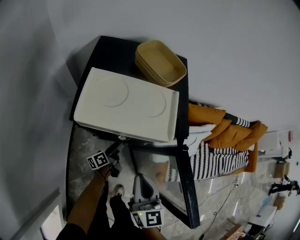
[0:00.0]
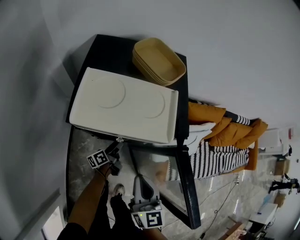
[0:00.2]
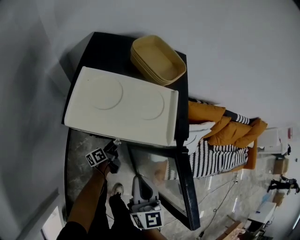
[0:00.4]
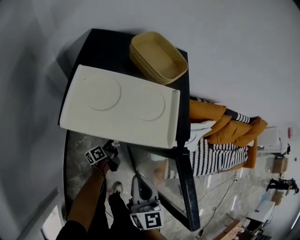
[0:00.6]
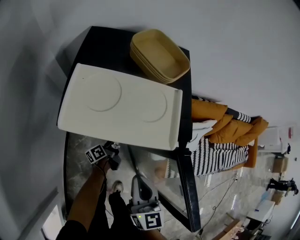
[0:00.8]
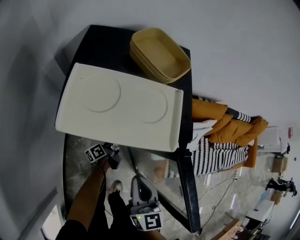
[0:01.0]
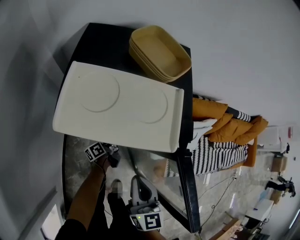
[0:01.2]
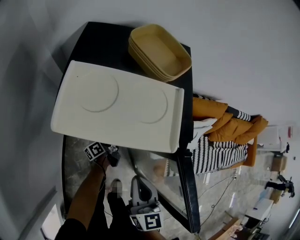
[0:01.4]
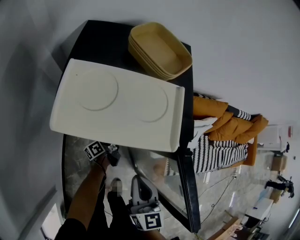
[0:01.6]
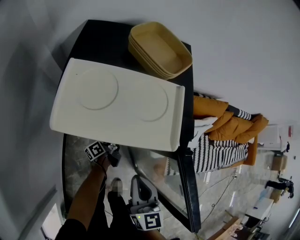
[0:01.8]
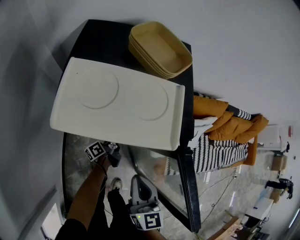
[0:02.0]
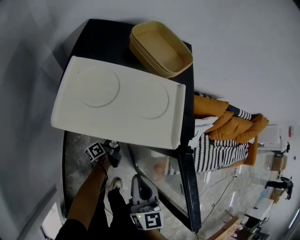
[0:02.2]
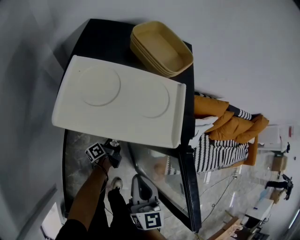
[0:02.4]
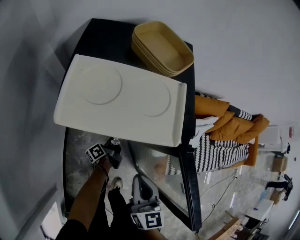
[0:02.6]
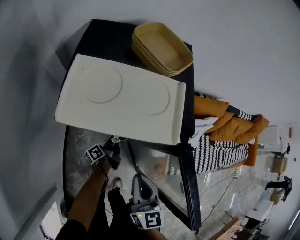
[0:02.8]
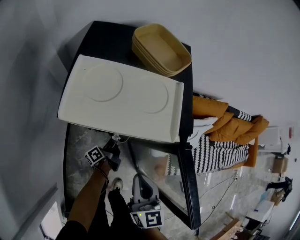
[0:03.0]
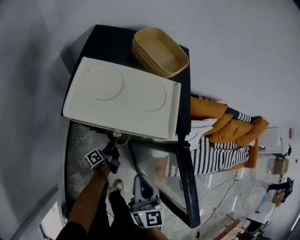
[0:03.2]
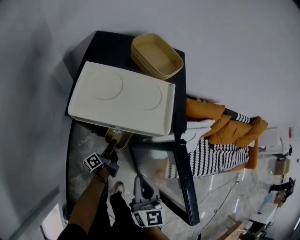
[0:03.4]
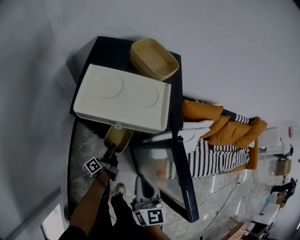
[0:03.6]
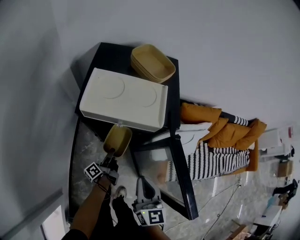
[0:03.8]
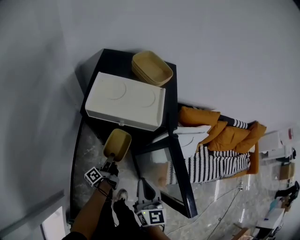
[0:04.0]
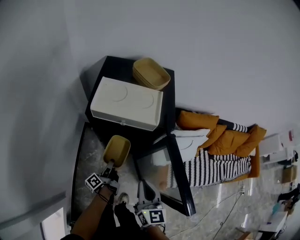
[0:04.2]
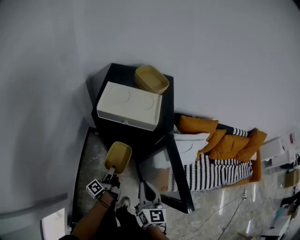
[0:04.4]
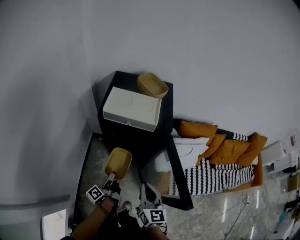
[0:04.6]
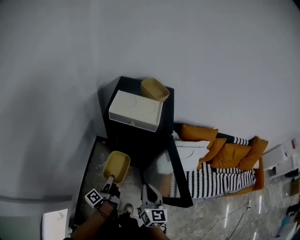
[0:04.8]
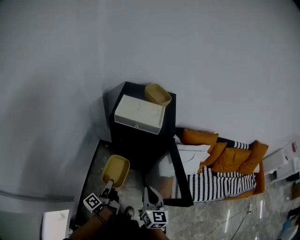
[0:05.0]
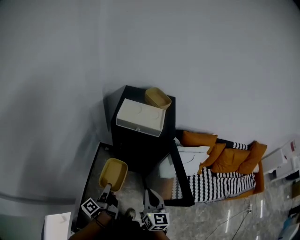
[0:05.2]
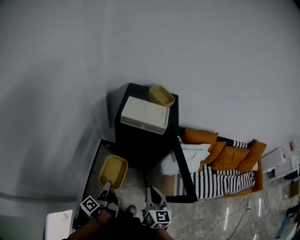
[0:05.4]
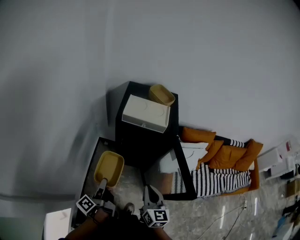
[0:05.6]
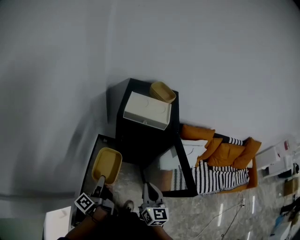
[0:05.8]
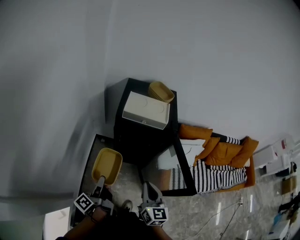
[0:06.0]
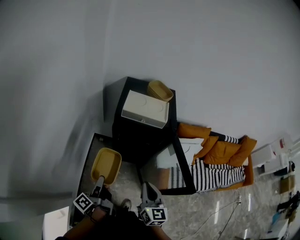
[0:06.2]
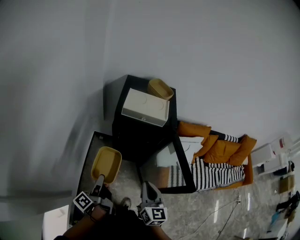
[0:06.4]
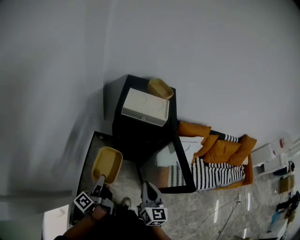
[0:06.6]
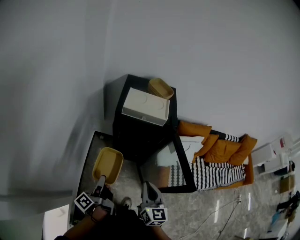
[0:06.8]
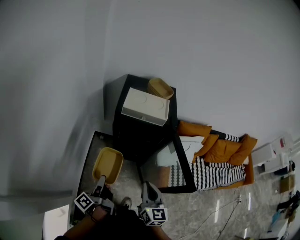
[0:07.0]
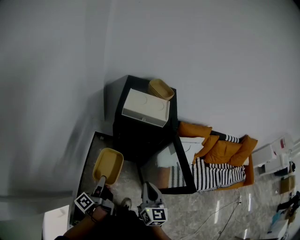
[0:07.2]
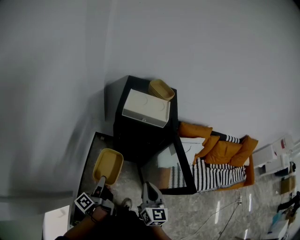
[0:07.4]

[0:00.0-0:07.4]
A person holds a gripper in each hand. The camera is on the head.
0:00.0 to 0:01.4: The left gripper goes about 5 cm forward.
0:01.4 to 0:03.0: The grippers stay close to where they were, moving slightly.
0:03.0 to 0:04.4: The right gripper moves backward and upward, approximately 10 cm. The left gripper shifts roughly 25 cm backward and upward.
0:04.4 to 0:06.0: The left gripper shifts about 25 cm upward, backward and to the left. The right gripper goes about 15 cm backward, upward and to the left.
0:06.0 to 0:07.4: The grippers stay close to where they were, moving slightly.

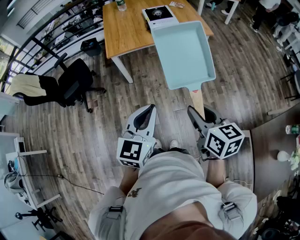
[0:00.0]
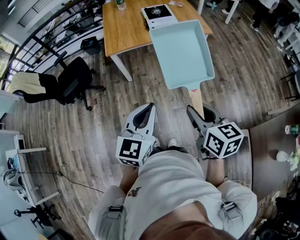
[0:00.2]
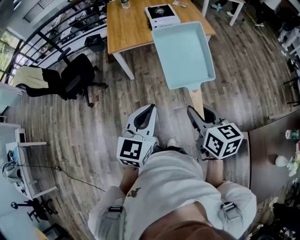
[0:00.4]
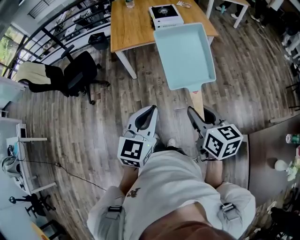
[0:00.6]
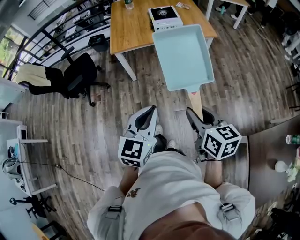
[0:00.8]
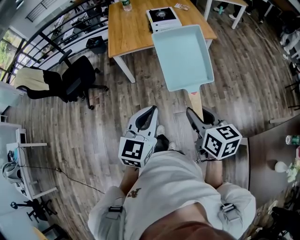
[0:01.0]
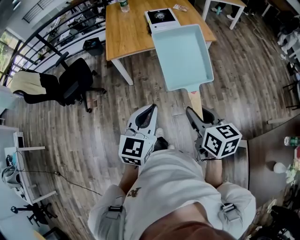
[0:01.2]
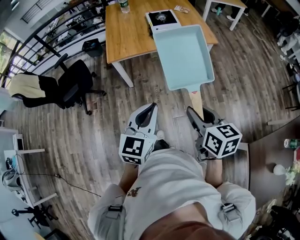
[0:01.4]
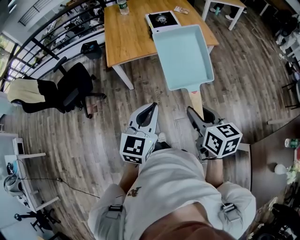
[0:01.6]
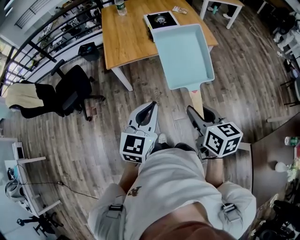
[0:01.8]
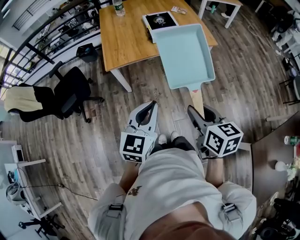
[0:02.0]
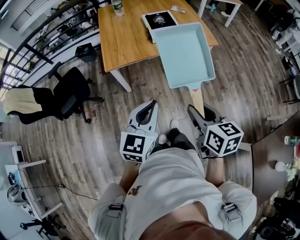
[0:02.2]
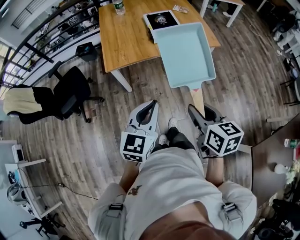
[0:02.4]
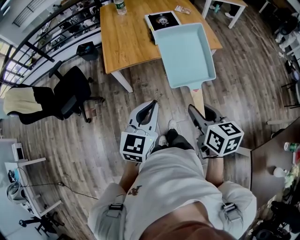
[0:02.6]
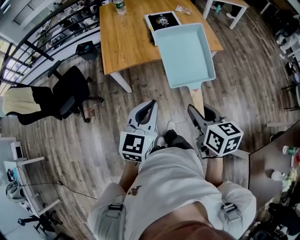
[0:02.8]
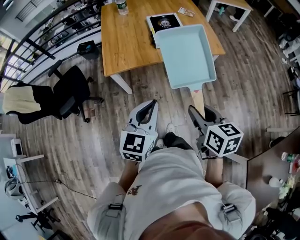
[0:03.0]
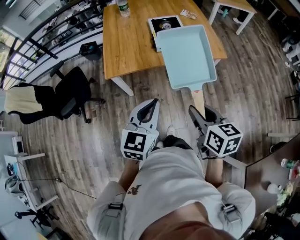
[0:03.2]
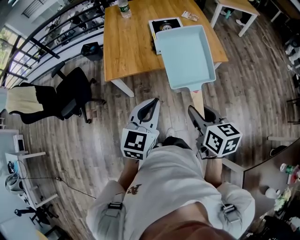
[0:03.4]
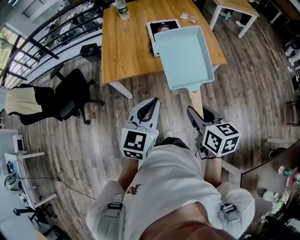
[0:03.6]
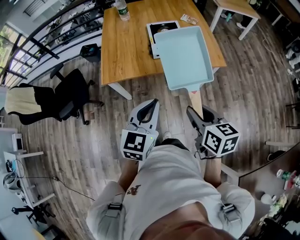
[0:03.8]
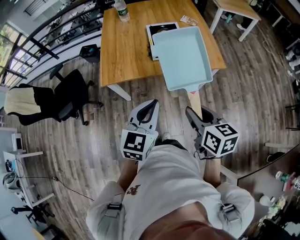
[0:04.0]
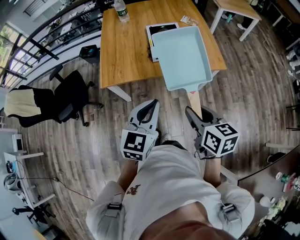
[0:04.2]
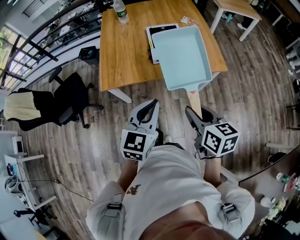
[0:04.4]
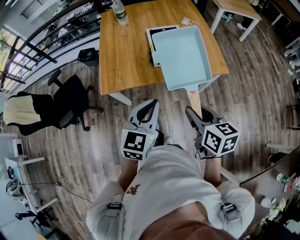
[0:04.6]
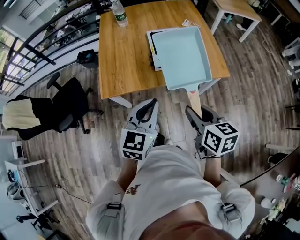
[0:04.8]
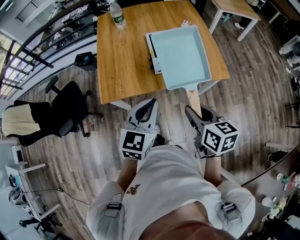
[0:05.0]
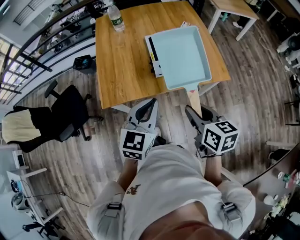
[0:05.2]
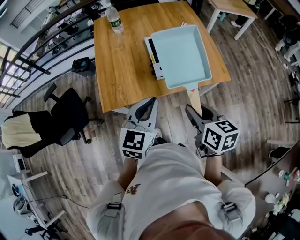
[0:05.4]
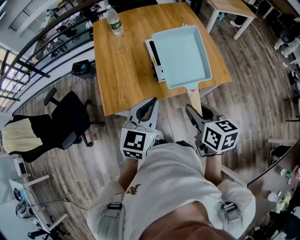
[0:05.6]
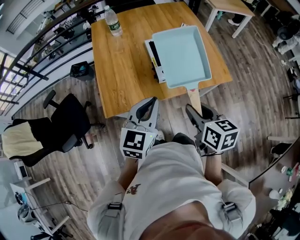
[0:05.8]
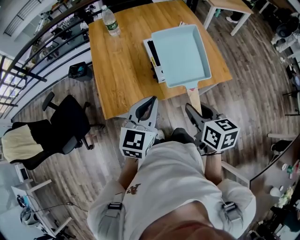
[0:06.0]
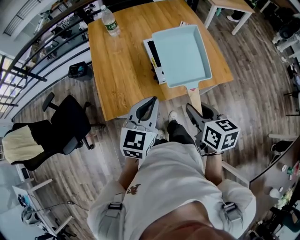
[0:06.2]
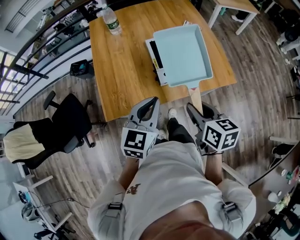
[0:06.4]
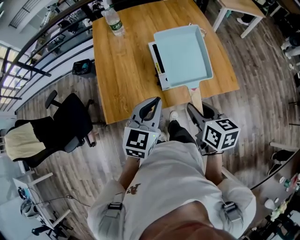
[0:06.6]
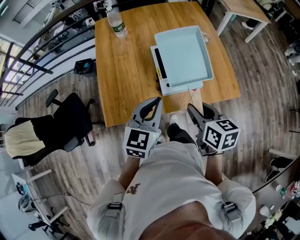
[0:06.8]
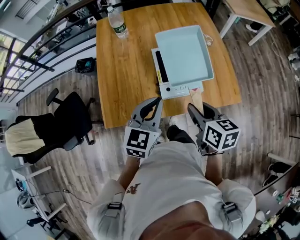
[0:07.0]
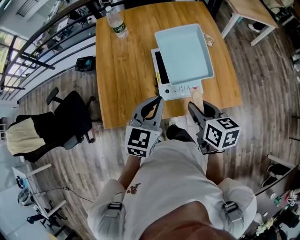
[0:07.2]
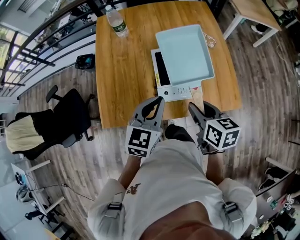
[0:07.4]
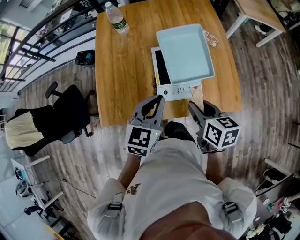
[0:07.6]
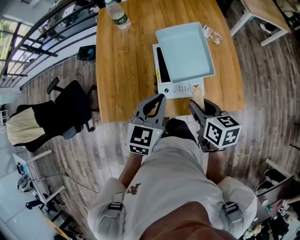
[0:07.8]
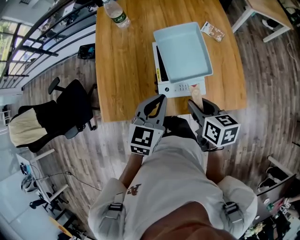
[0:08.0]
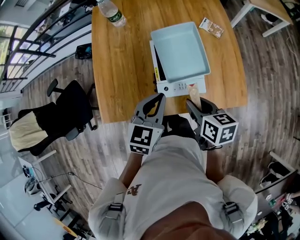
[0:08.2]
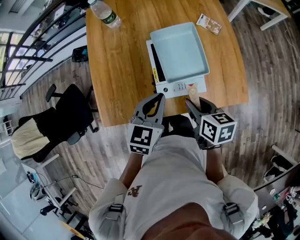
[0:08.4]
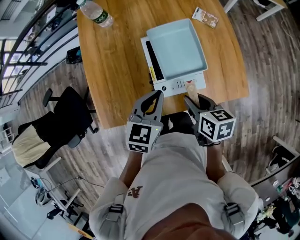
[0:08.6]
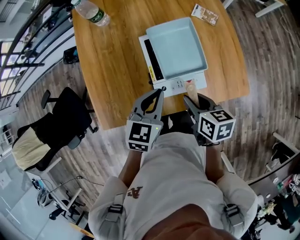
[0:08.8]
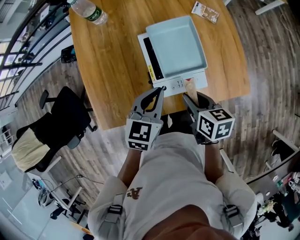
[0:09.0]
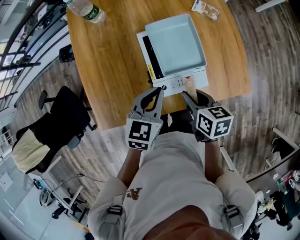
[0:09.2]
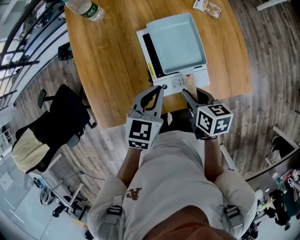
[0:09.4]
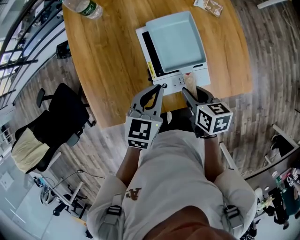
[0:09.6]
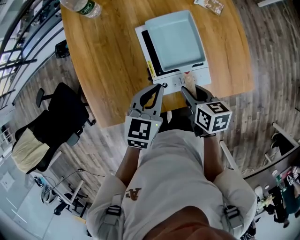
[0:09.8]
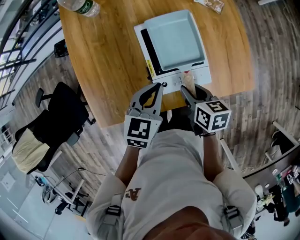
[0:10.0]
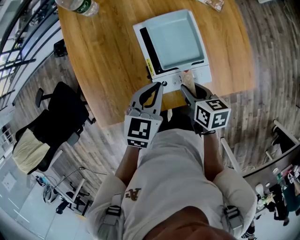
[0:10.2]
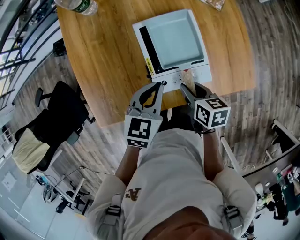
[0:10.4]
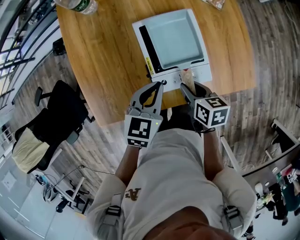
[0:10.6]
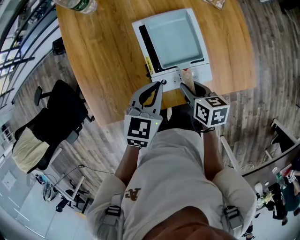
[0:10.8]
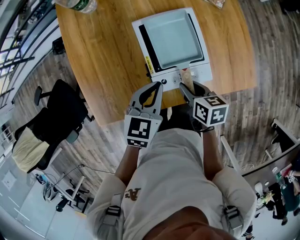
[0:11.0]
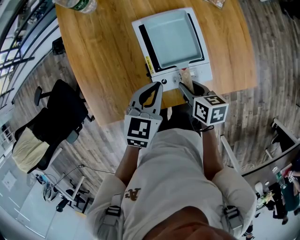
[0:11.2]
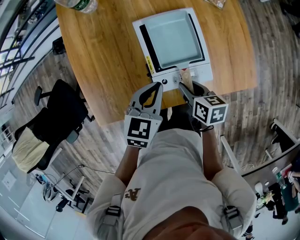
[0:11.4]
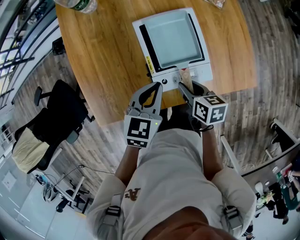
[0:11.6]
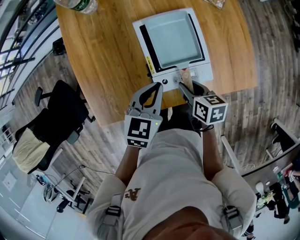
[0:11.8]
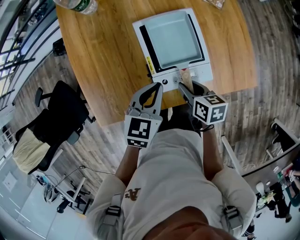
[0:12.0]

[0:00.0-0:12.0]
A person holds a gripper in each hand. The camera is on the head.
0:00.0 to 0:01.6: The two grippers go some 10 cm forward.
0:01.6 to 0:03.0: Both grippers travel together forward, about 15 cm.
0:03.0 to 0:04.4: The left gripper moves forward and to the right, some 15 cm; the right gripper shifts some 15 cm forward.
0:04.4 to 0:06.0: Both grippers travel together forward and to the left, about 20 cm.
0:06.0 to 0:07.6: The left gripper travels forward and to the right by some 20 cm, while the right gripper is displaced forward by about 20 cm.
0:07.6 to 0:09.0: The right gripper moves downward, about 10 cm. The left gripper is displaced downward and forward by roughly 10 cm.
0:09.0 to 0:10.4: The right gripper moves downward, some 10 cm.
0:10.4 to 0:12.0: The grippers move only a little.

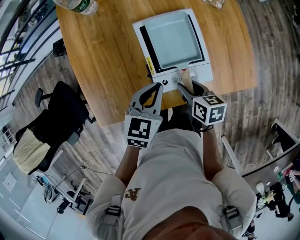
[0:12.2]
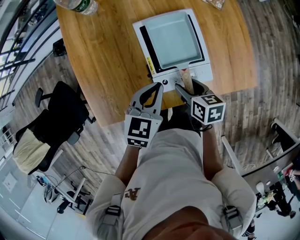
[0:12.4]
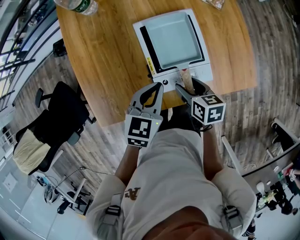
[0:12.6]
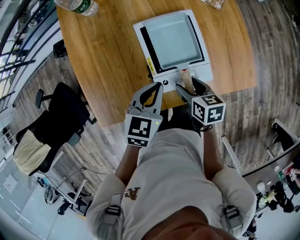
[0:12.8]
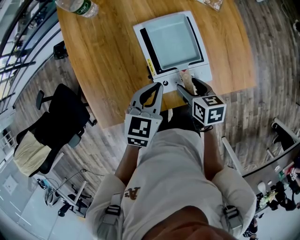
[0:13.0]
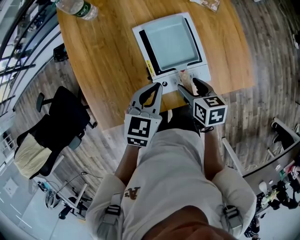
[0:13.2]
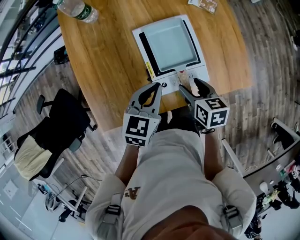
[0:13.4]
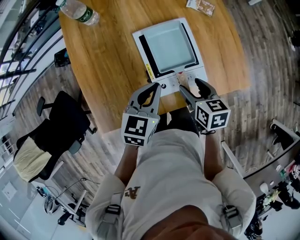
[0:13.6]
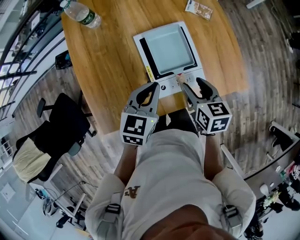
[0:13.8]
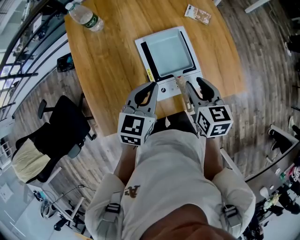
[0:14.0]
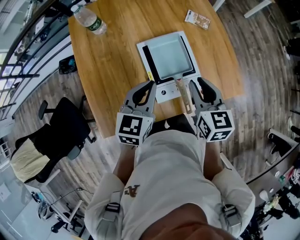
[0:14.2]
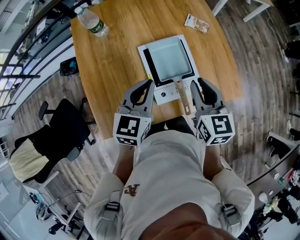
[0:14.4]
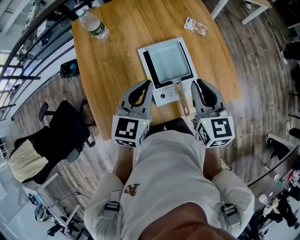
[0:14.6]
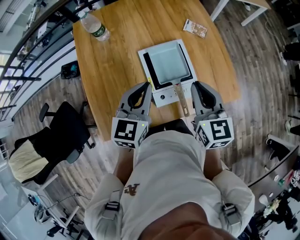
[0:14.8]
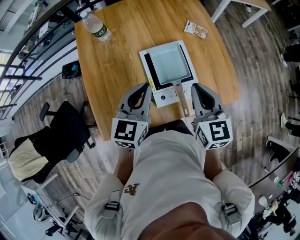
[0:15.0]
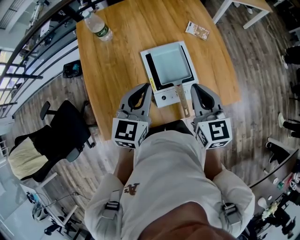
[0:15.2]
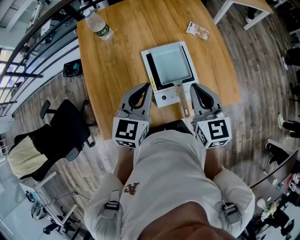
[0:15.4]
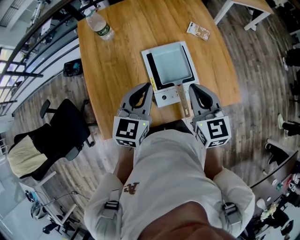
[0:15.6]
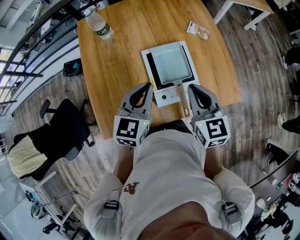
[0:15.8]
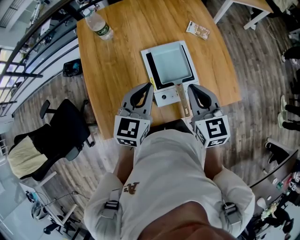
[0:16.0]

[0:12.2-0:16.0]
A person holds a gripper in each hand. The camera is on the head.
0:12.2 to 0:13.4: The right gripper opens.
0:13.4 to 0:14.8: The right gripper heads upward, covering roughly 20 cm, turns by approximately 40 degrees, and closes up. Meanwhile the left gripper travels upward by roughly 10 cm.
0:14.8 to 0:16.0: There are only small adjustments of the grippers.
